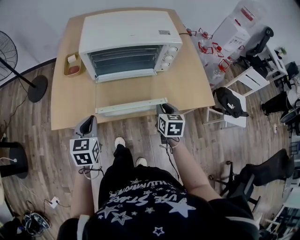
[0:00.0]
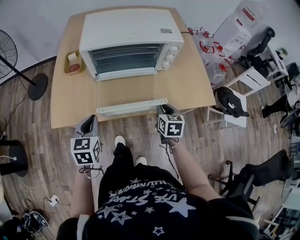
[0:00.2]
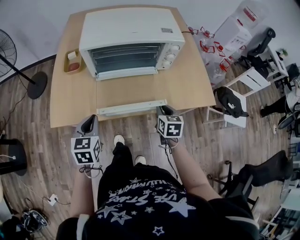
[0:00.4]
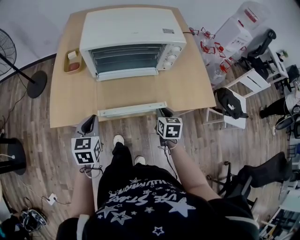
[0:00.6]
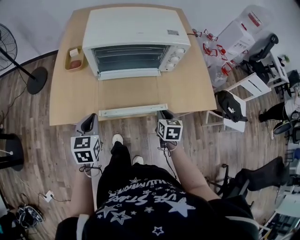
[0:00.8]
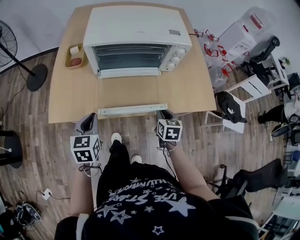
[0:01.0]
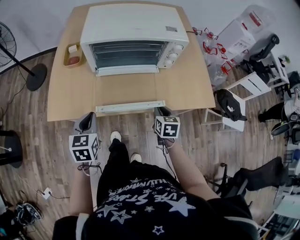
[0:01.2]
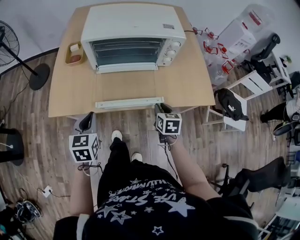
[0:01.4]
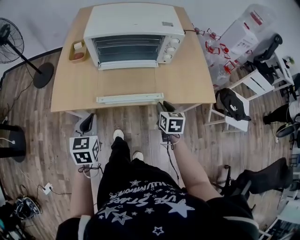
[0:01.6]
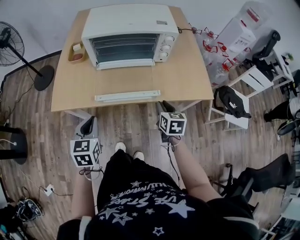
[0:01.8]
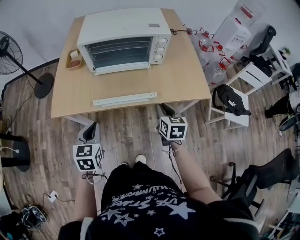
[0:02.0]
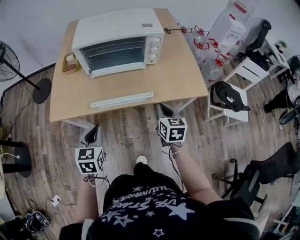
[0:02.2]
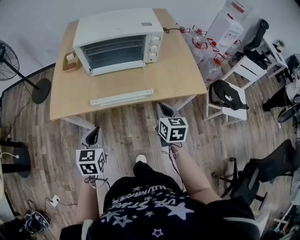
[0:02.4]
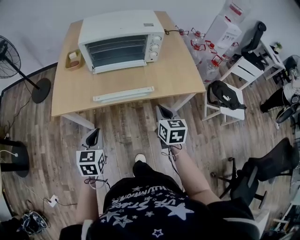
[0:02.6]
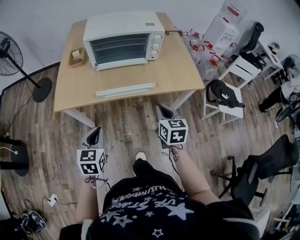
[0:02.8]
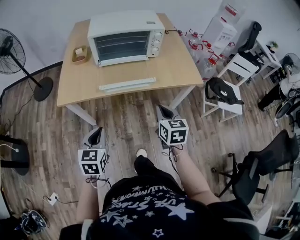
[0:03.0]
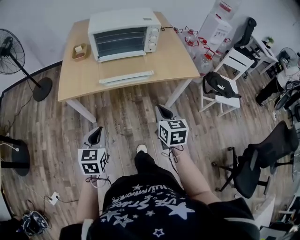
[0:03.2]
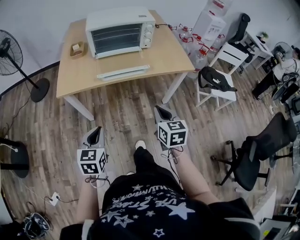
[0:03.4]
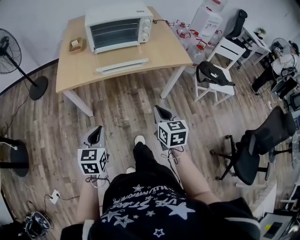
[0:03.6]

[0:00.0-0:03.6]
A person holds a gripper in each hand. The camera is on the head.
0:00.0 to 0:01.8: The left gripper travels backward by roughly 10 cm; the right gripper shifts approximately 5 cm backward.
0:01.8 to 0:03.6: Both grippers move backward, about 30 cm.

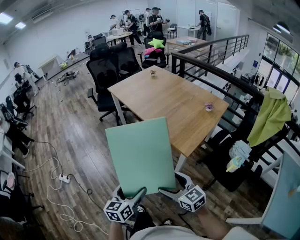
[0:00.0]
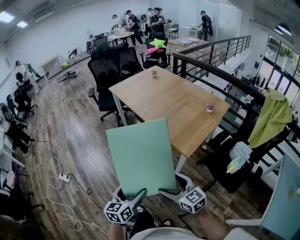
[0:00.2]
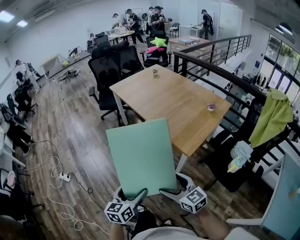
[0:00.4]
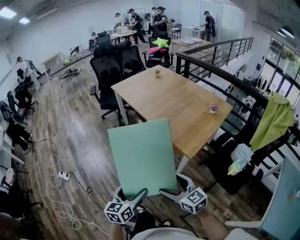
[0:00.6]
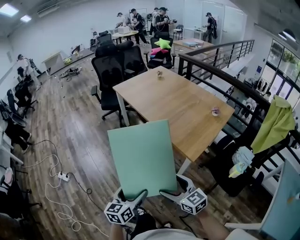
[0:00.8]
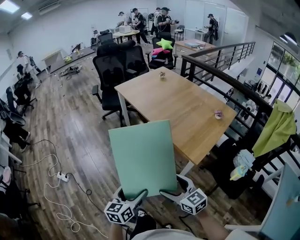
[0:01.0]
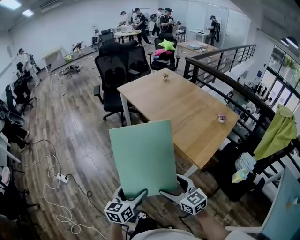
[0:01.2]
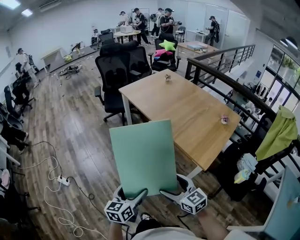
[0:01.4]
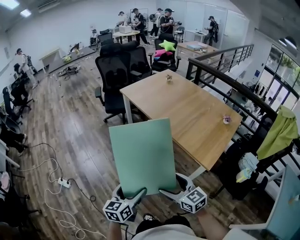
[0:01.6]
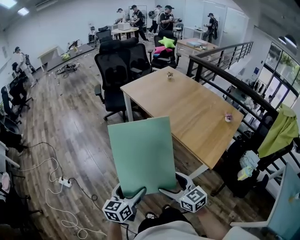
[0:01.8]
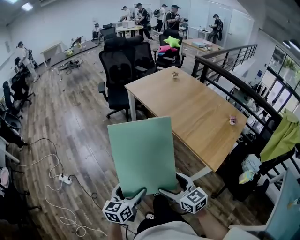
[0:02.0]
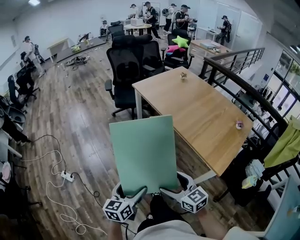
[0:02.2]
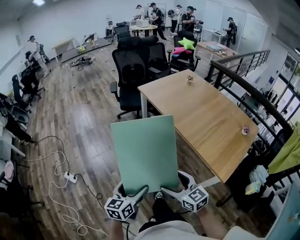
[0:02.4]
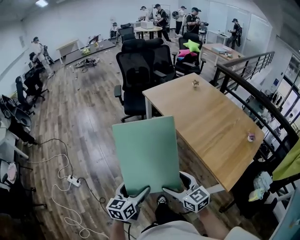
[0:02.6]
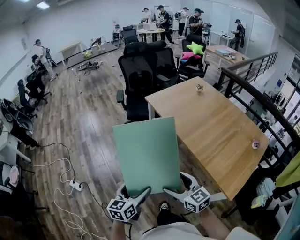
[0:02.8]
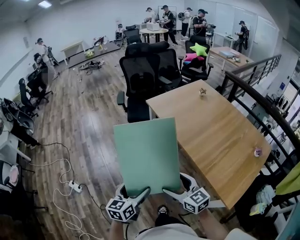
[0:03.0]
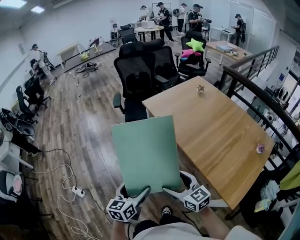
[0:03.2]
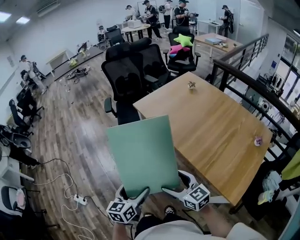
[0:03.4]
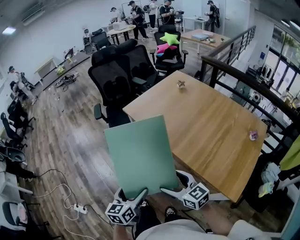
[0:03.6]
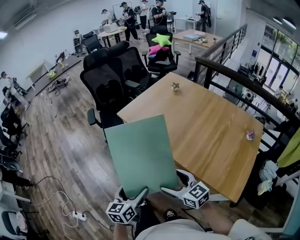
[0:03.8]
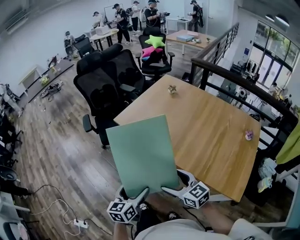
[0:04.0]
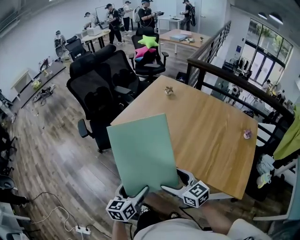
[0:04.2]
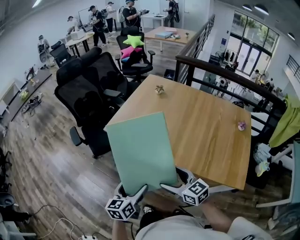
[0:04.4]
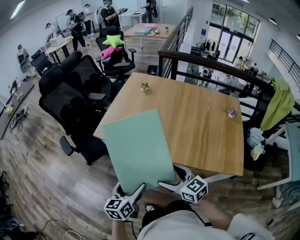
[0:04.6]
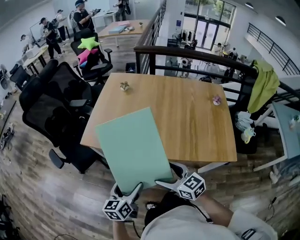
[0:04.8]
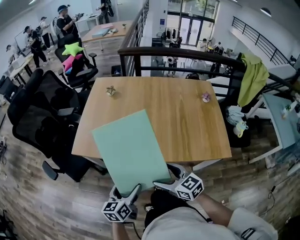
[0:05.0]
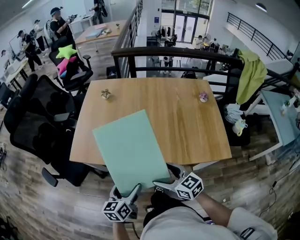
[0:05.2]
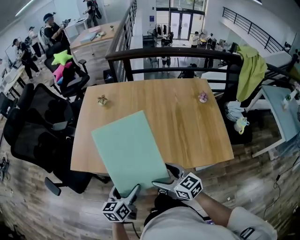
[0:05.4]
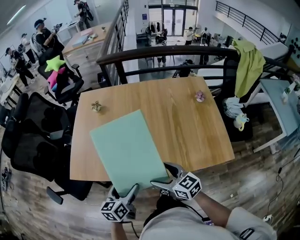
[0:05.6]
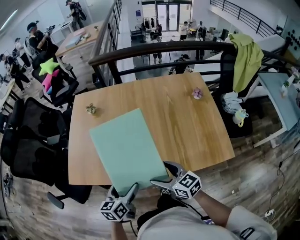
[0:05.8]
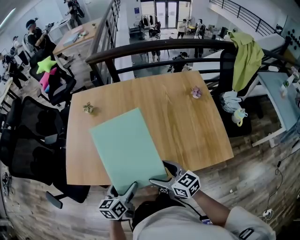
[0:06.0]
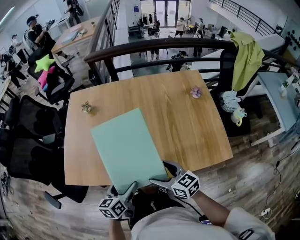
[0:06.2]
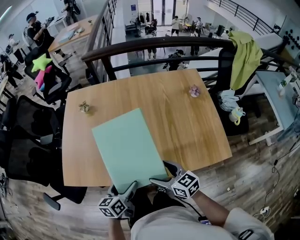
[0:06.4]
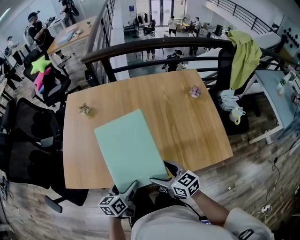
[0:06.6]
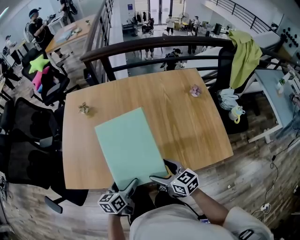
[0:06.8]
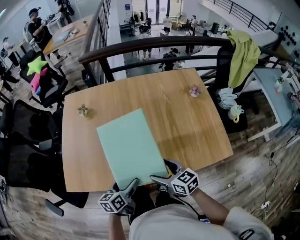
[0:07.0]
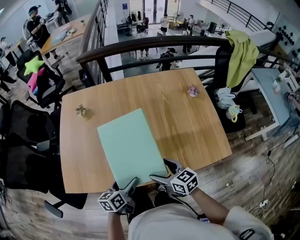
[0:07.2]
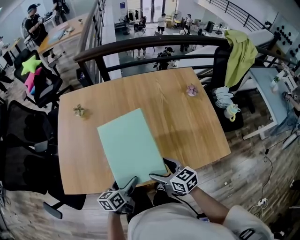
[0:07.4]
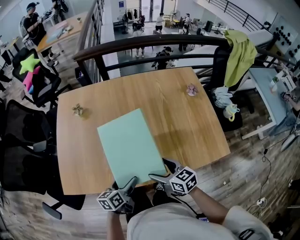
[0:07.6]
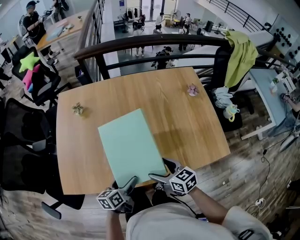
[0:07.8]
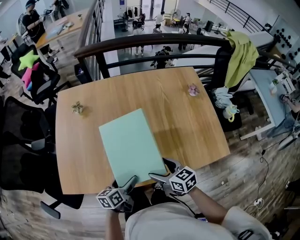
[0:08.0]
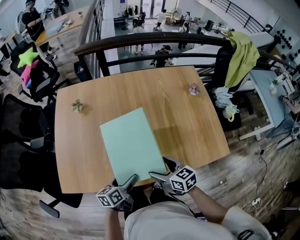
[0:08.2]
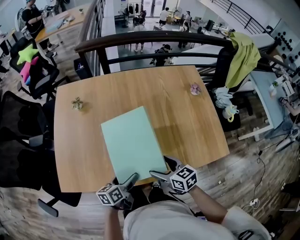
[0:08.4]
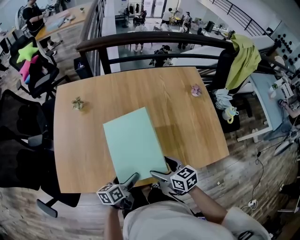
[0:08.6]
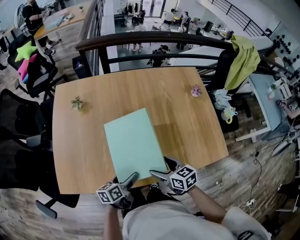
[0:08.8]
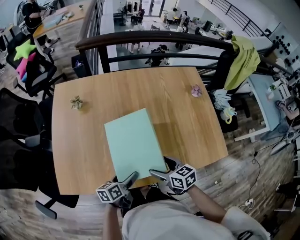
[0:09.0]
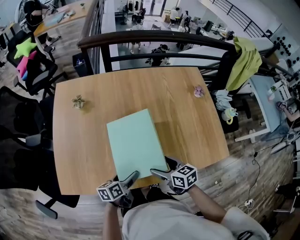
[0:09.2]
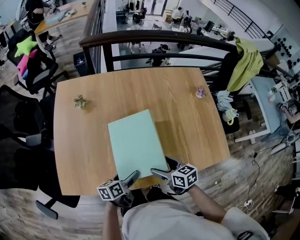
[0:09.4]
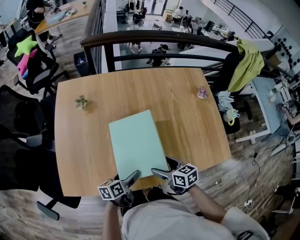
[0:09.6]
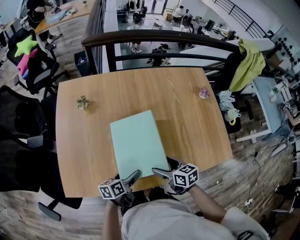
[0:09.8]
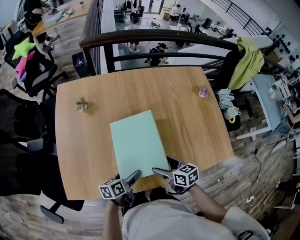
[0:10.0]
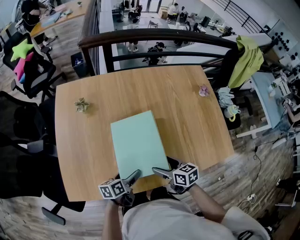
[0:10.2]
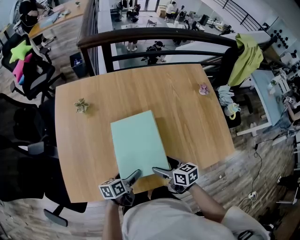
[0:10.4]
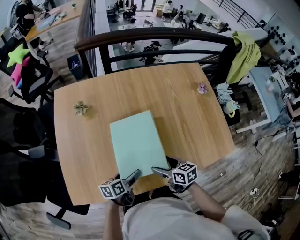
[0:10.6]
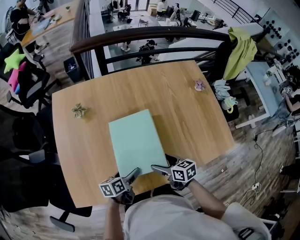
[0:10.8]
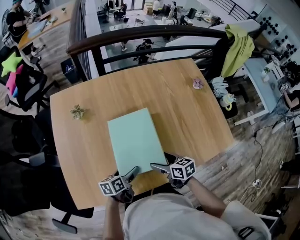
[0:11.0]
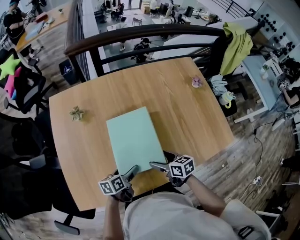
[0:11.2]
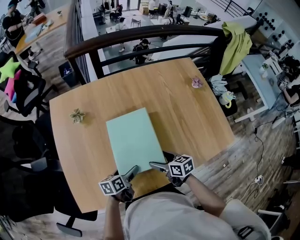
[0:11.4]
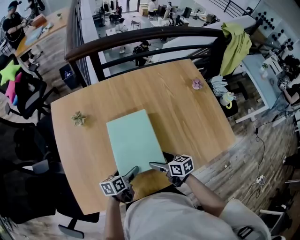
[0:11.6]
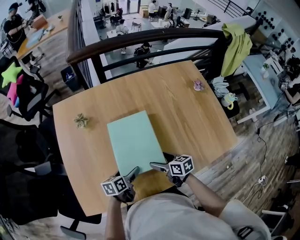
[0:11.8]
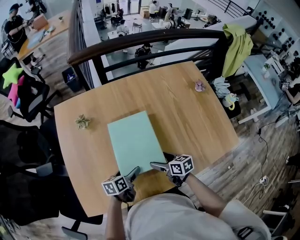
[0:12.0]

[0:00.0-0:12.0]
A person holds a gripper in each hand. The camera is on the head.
0:00.0 to 0:01.6: The two grippers go roughly 20 cm to the left and forward.
0:01.6 to 0:03.0: The grippers both shift forward by some 25 cm.
0:03.0 to 0:04.4: The right gripper moves some 25 cm, and rotates about 30 degrees. Meanwhile the left gripper moves approximately 30 cm, and swivels about 30 degrees.
0:04.4 to 0:06.0: The right gripper changes place by approximately 20 cm, and swivels about 30 degrees; the left gripper changes place by about 25 cm, and changes its angle by some 30 degrees.
0:06.0 to 0:07.6: The right gripper ends up about 5 cm from where it was. The left gripper goes some 10 cm downward and forward.
0:07.6 to 0:09.0: The left gripper moves about 5 cm.
0:09.0 to 0:10.4: The left gripper goes some 5 cm to the left. Meanwhile the right gripper ends up roughly 5 cm from where it was.
0:10.4 to 0:12.0: Both grippers travel together forward, approximately 5 cm.

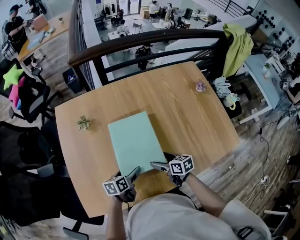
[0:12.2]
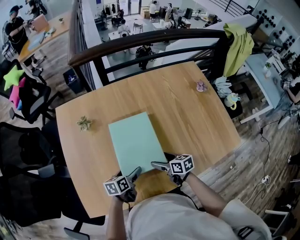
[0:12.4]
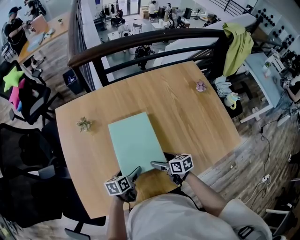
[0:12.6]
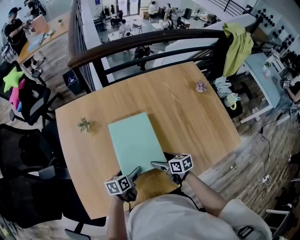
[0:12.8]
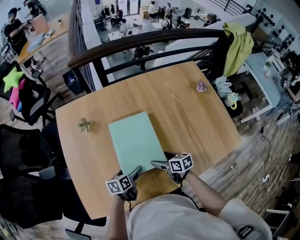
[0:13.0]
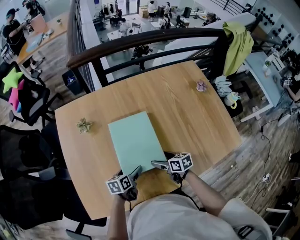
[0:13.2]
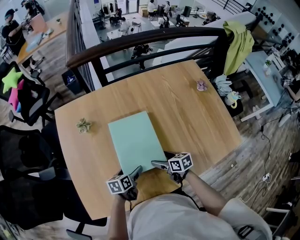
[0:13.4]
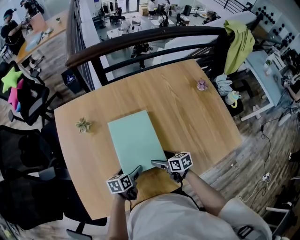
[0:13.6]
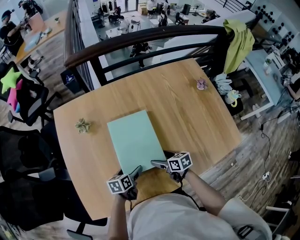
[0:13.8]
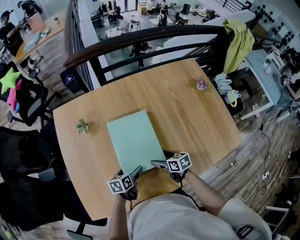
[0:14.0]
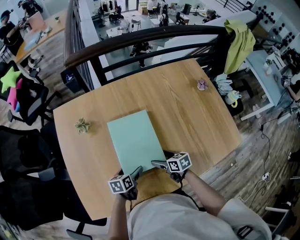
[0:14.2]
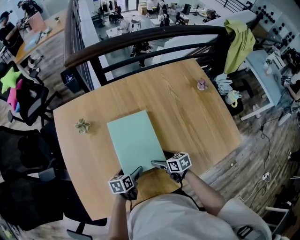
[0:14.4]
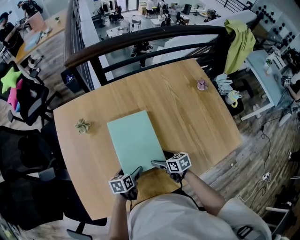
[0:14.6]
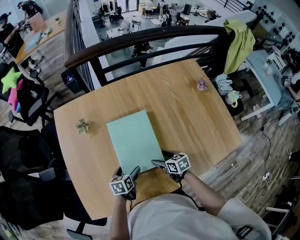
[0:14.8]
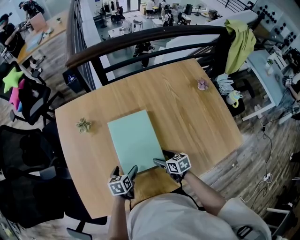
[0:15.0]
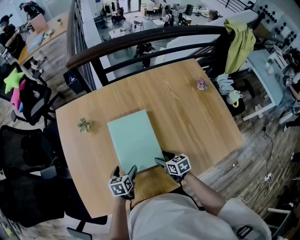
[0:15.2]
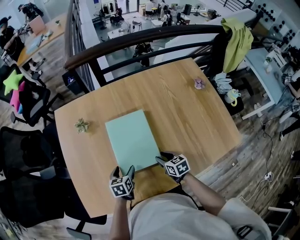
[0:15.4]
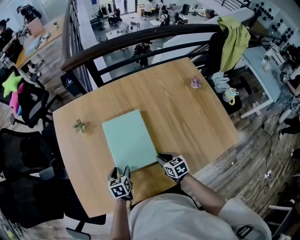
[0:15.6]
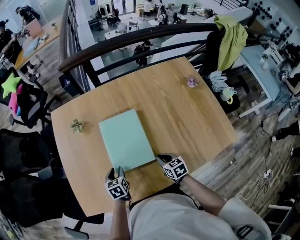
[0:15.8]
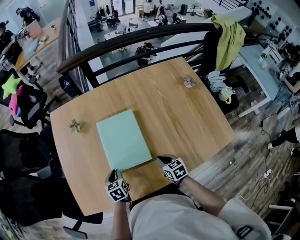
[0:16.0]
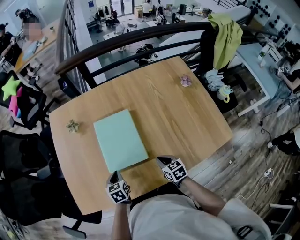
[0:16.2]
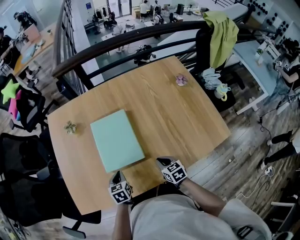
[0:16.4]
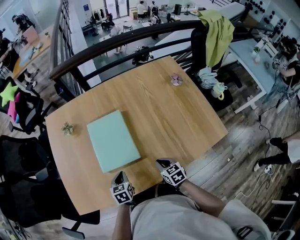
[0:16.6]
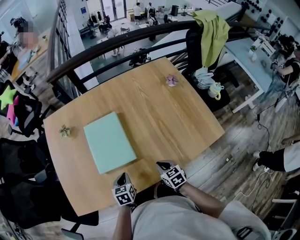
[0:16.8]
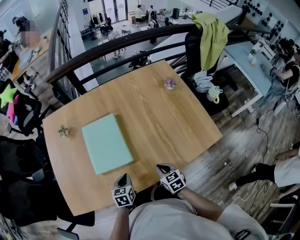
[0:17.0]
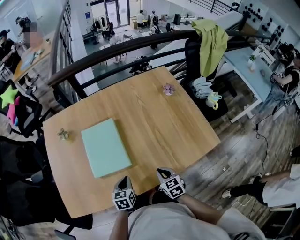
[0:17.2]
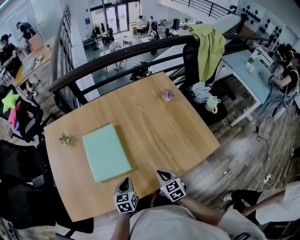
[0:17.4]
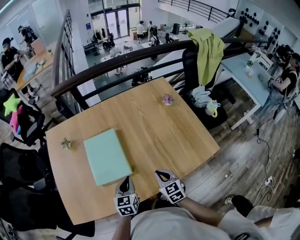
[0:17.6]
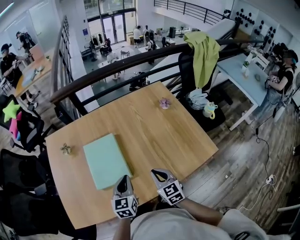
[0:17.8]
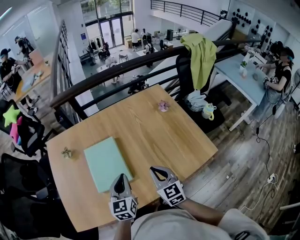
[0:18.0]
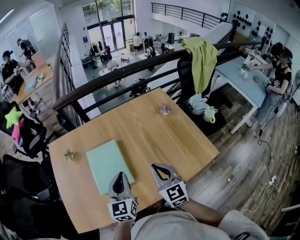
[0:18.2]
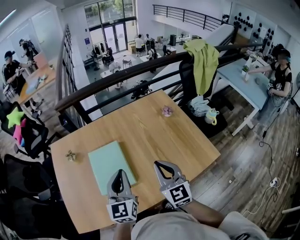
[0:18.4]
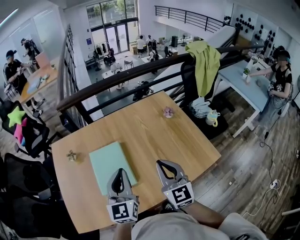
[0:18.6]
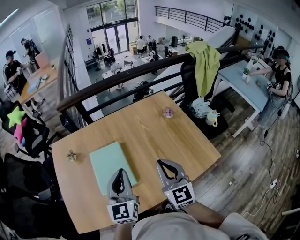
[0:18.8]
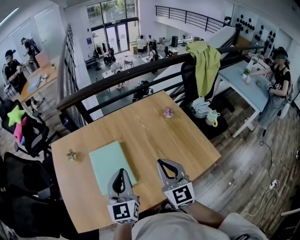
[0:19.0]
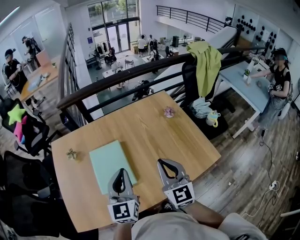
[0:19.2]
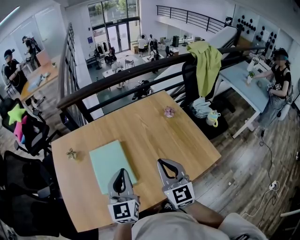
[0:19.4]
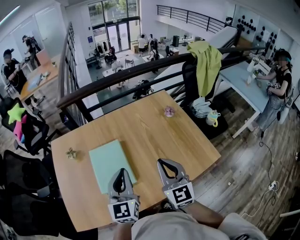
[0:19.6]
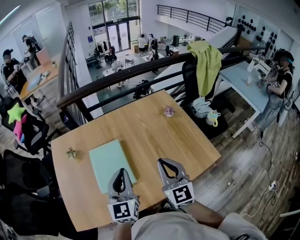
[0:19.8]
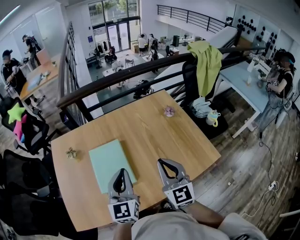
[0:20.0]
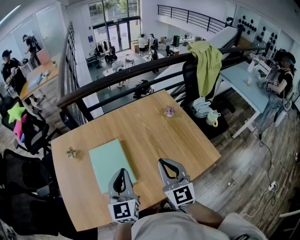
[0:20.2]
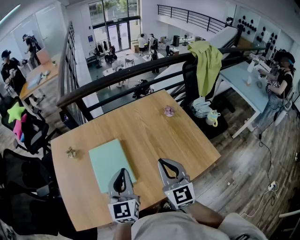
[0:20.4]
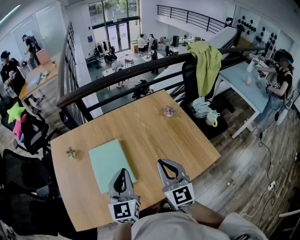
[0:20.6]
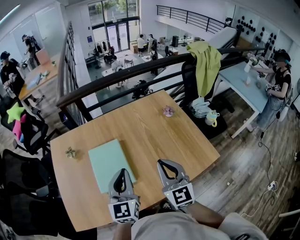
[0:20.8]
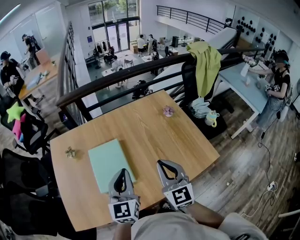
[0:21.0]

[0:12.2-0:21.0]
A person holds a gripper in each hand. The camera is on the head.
0:12.2 to 0:13.6: The grippers make only small movements.
0:13.6 to 0:15.2: The right gripper closes up.
0:15.2 to 0:16.6: The grippers both shift backward and to the right by approximately 15 cm. The right gripper closes. The left gripper closes up.
0:16.6 to 0:18.0: The left gripper is displaced upward and to the right by roughly 20 cm, and tips its fingers upward by about 30 degrees. The right gripper is displaced upward by approximately 20 cm, and changes its angle by about 30 degrees.
0:18.0 to 0:19.6: Both grippers move upward, approximately 10 cm.
0:19.6 to 0:21.0: Both grippers stay about where they are.
